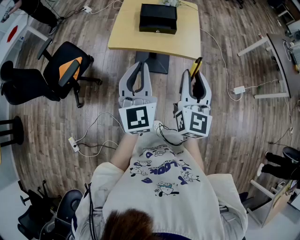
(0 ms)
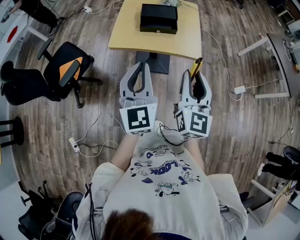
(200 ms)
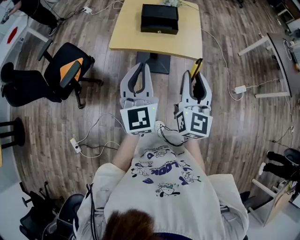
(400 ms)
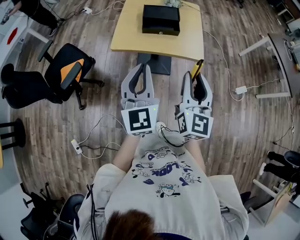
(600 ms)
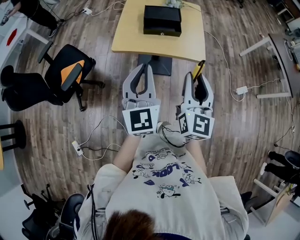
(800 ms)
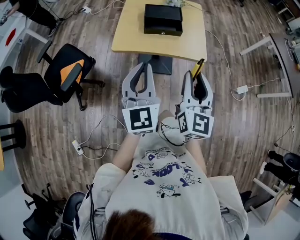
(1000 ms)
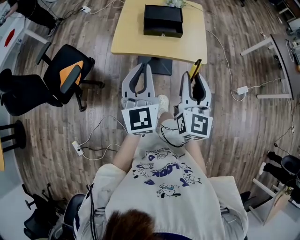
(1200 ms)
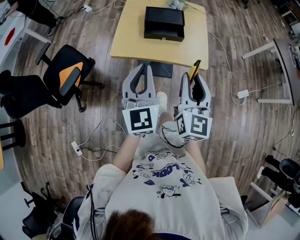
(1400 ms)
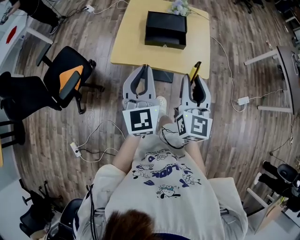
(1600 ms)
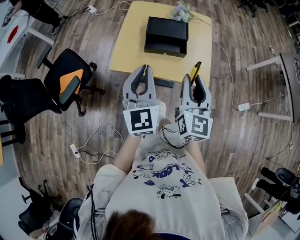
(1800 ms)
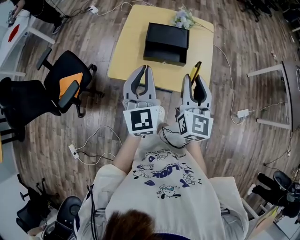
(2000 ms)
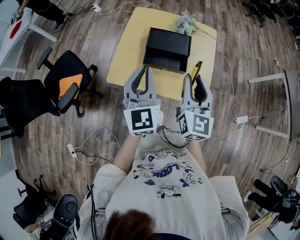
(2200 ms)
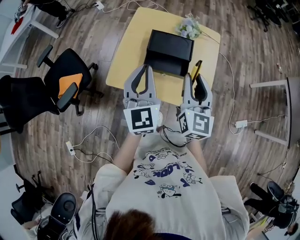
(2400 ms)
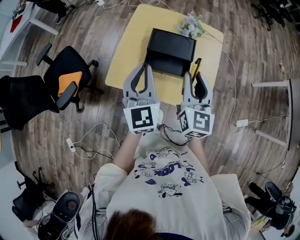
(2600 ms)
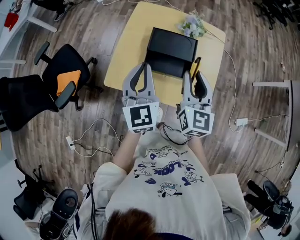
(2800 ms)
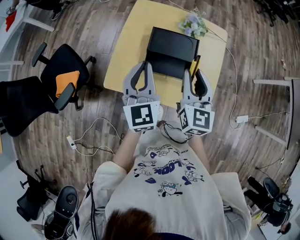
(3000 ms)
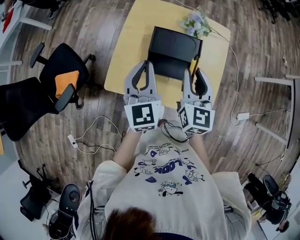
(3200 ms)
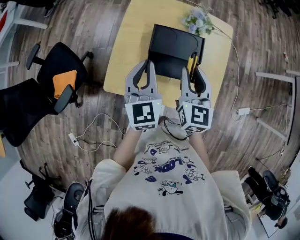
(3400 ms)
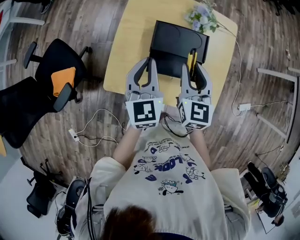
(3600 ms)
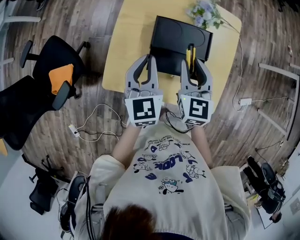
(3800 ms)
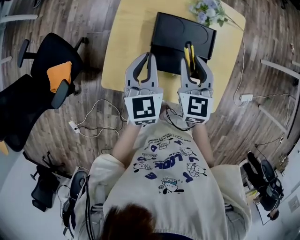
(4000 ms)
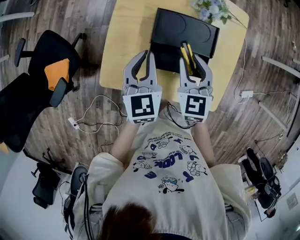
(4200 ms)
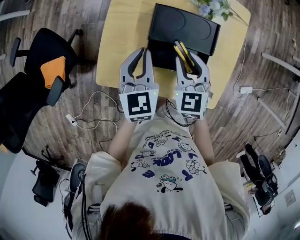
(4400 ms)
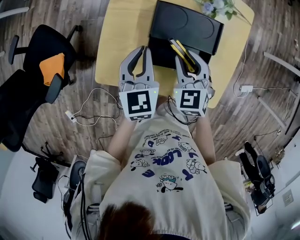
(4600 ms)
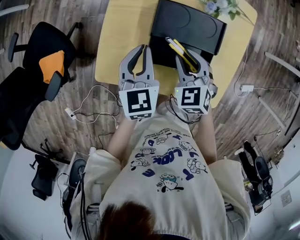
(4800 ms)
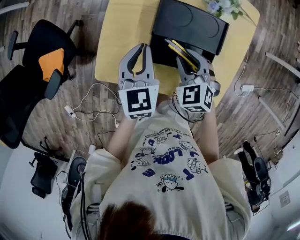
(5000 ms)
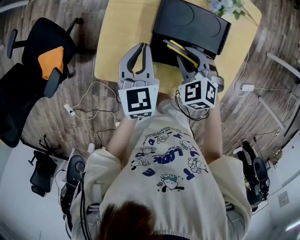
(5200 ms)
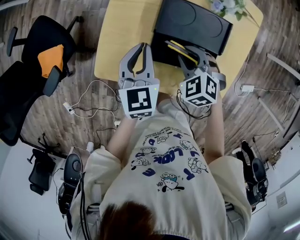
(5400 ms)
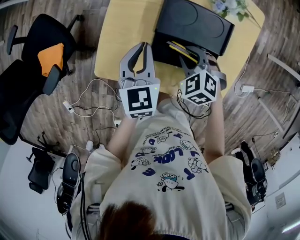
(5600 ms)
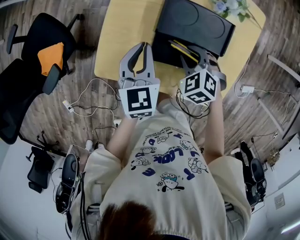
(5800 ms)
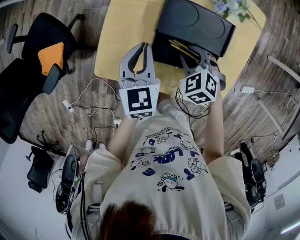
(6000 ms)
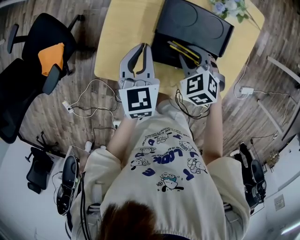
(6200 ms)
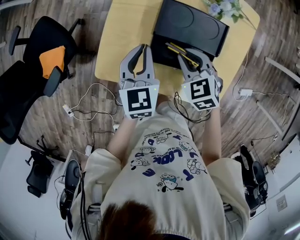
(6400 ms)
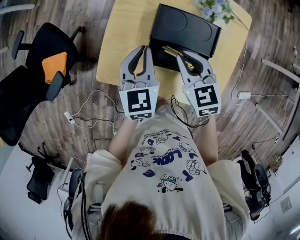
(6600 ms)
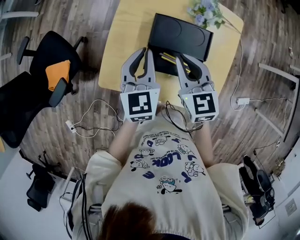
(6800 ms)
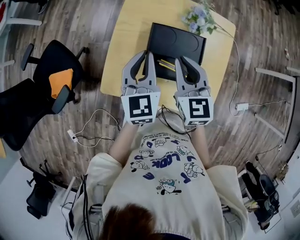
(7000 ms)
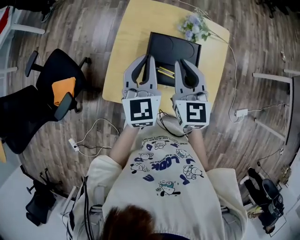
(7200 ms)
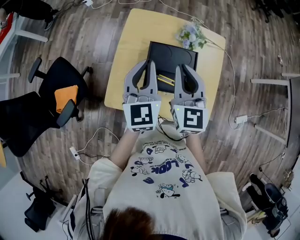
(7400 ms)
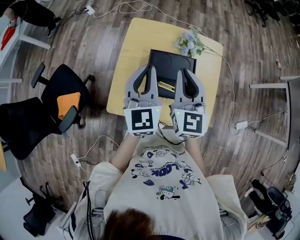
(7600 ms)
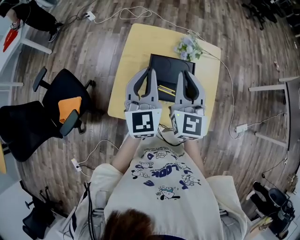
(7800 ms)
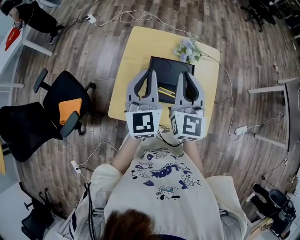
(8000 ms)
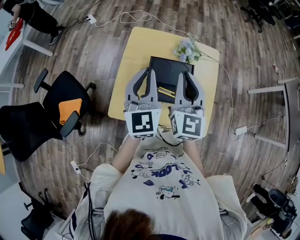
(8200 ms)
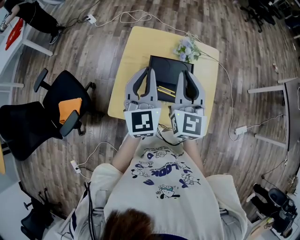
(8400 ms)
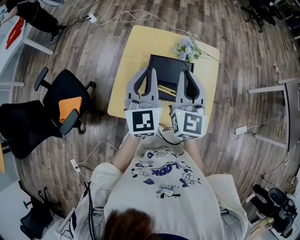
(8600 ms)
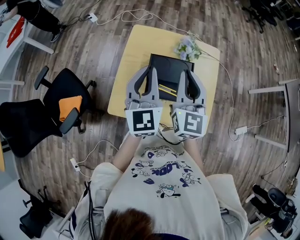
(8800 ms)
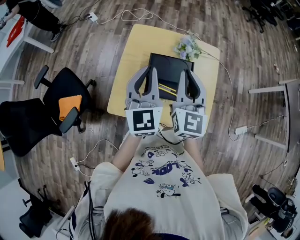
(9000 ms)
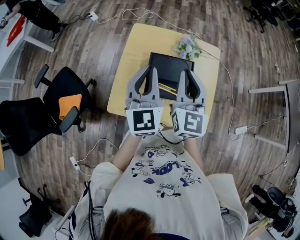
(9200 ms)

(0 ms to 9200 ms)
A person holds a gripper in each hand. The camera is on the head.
0 ms - 1600 ms: Both grippers travel together forward, approximately 15 cm.
1600 ms - 3000 ms: The two grippers go about 25 cm forward.
3000 ms - 4600 ms: Both grippers travel together downward and forward, some 15 cm. The right gripper tilts its fingers some 30 degrees downward; the left gripper changes its angle by some 20 degrees.
4600 ms - 6200 ms: The right gripper is displaced downward by approximately 5 cm, and changes its angle by approximately 30 degrees.
6200 ms - 7600 ms: Both grippers travel together upward, approximately 25 cm. The left gripper changes its angle by approximately 30 degrees. The right gripper tips its fingers upward by about 50 degrees, and closes its fingers.
7600 ms - 9200 ms: The grippers make only small movements.

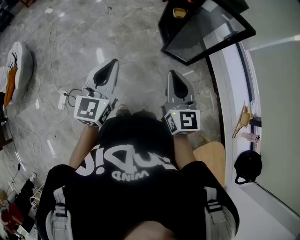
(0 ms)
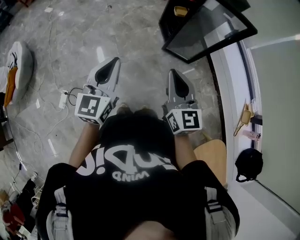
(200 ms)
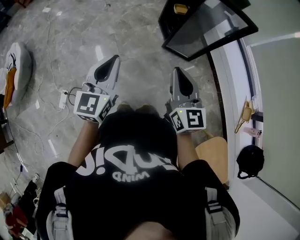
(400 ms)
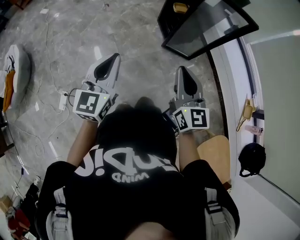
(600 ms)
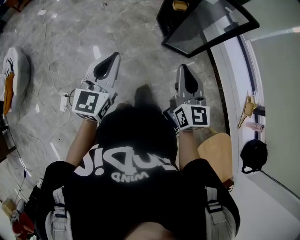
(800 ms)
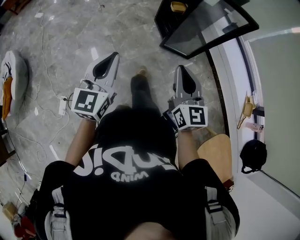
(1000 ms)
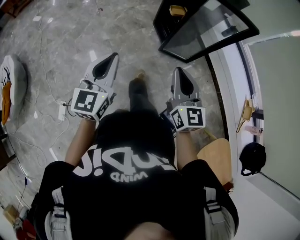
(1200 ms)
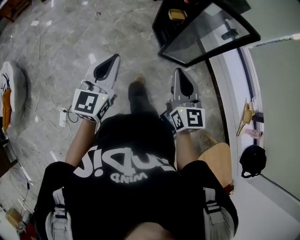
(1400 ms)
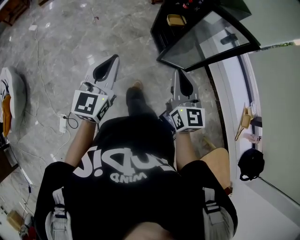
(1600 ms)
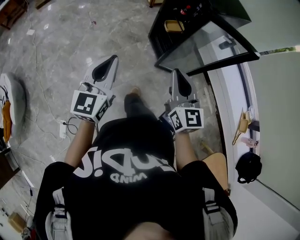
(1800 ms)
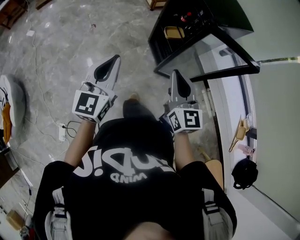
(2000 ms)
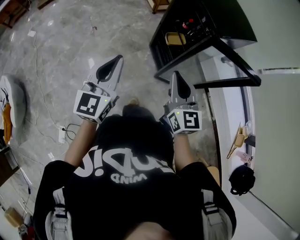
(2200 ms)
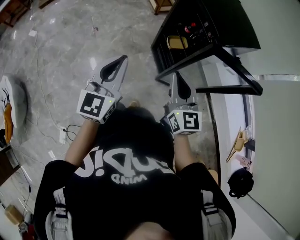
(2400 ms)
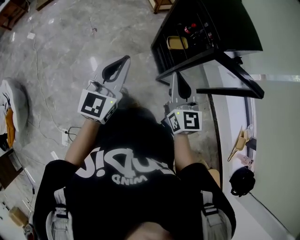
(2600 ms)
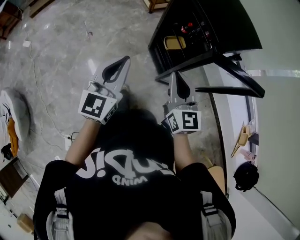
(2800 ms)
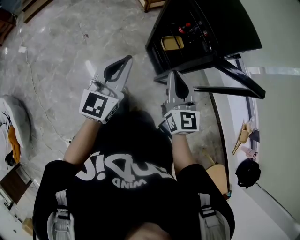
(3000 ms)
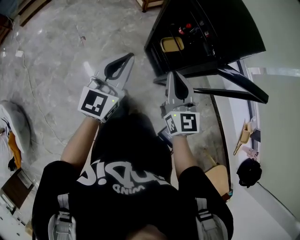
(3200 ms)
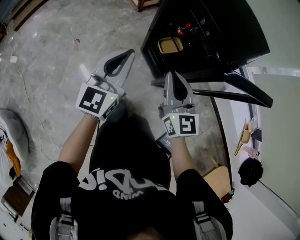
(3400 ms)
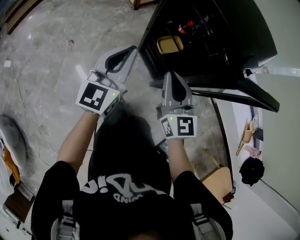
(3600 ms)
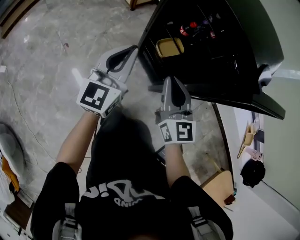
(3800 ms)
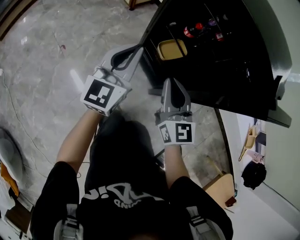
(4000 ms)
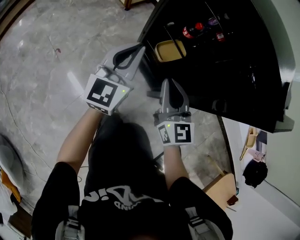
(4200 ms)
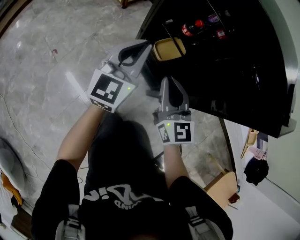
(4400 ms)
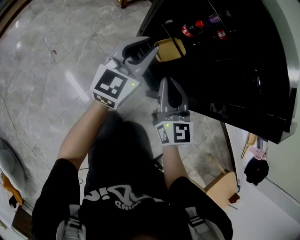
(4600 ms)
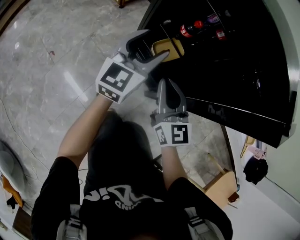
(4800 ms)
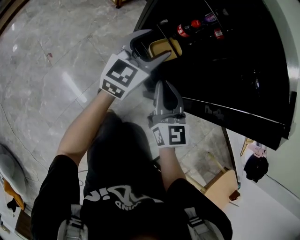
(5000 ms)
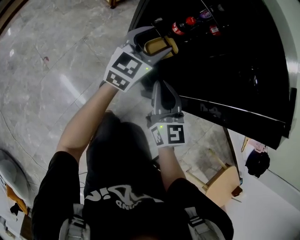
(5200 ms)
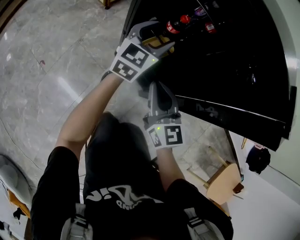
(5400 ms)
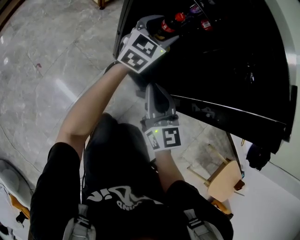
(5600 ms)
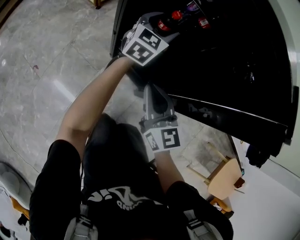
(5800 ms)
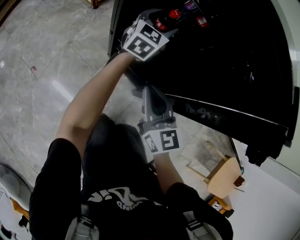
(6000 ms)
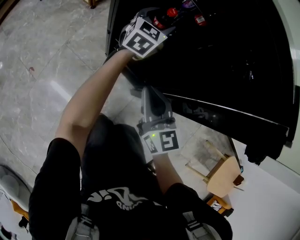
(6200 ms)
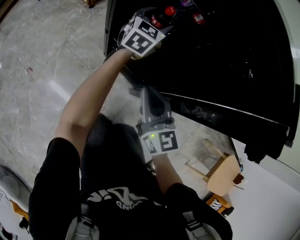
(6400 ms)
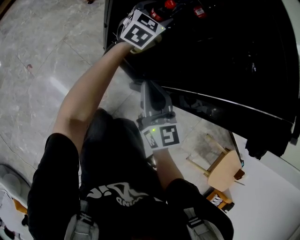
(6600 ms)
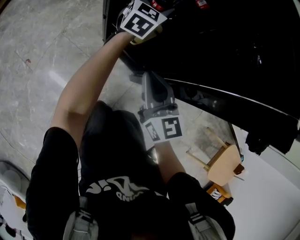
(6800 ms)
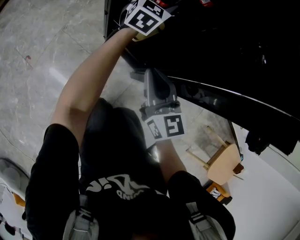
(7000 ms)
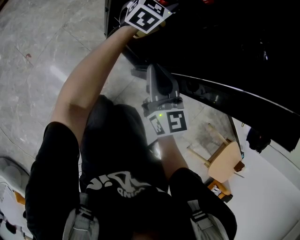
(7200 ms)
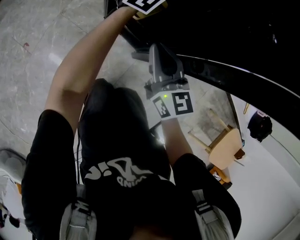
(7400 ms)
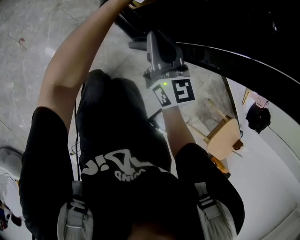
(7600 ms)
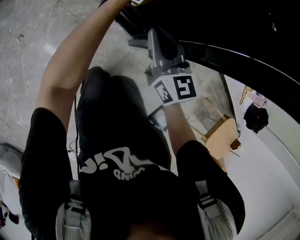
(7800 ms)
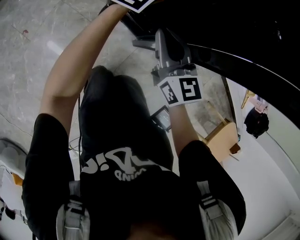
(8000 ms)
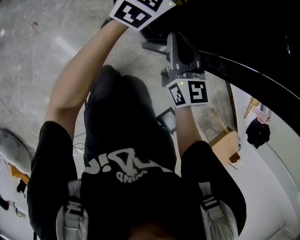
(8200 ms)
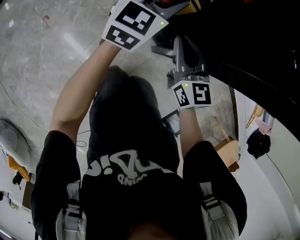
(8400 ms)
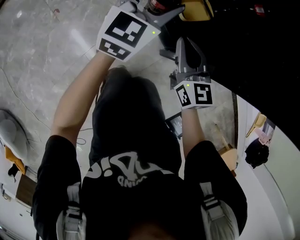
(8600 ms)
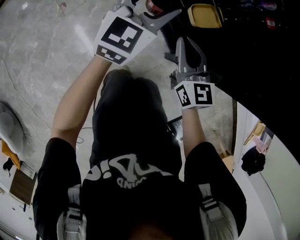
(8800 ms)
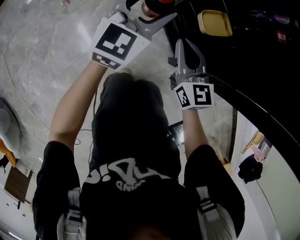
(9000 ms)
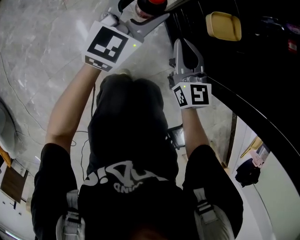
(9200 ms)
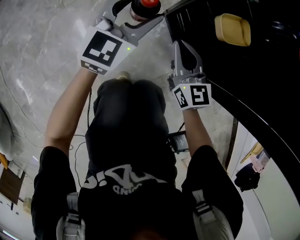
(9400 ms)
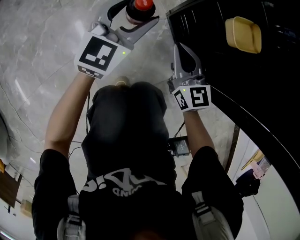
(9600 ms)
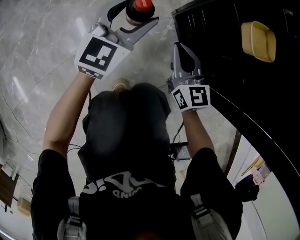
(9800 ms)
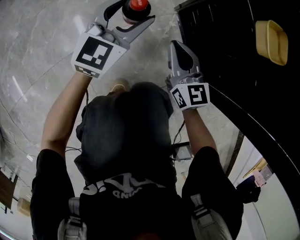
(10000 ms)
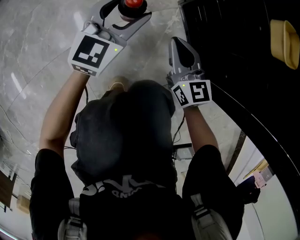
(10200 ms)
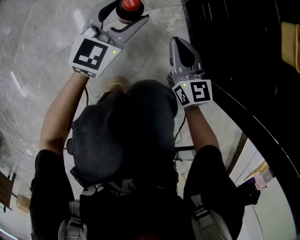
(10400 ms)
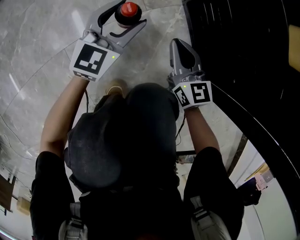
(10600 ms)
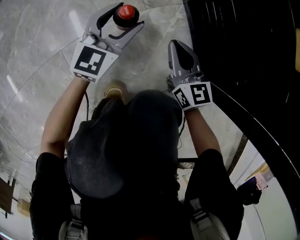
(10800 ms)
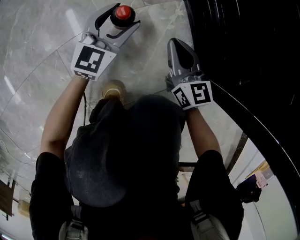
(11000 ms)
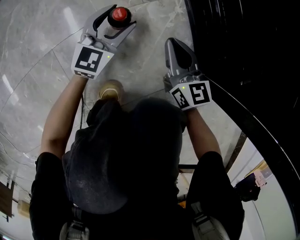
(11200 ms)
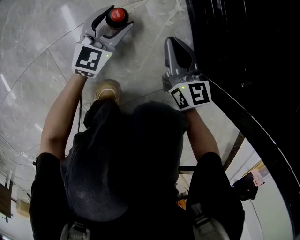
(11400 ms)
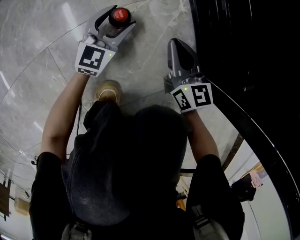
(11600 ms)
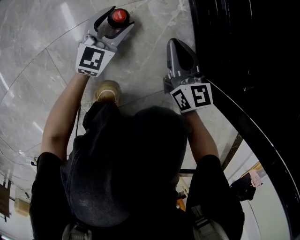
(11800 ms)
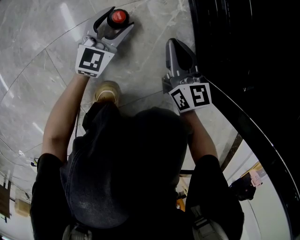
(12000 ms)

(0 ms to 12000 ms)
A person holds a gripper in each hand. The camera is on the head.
0 ms - 1600 ms: The grippers both shift forward by approximately 20 cm.
1600 ms - 3000 ms: The grippers both shift forward by about 35 cm.
3000 ms - 4400 ms: The two grippers go about 35 cm downward and forward.
4400 ms - 6000 ms: The left gripper travels forward, to the right and downward by approximately 25 cm, and opens up, while the right gripper moves downward, approximately 5 cm.
6000 ms - 7600 ms: The grippers move only a little.
7600 ms - 9000 ms: The left gripper travels to the left and backward by roughly 25 cm. Meanwhile the right gripper is displaced to the left and downward by approximately 15 cm.
9000 ms - 10400 ms: The two grippers go roughly 40 cm downward.
10400 ms - 12000 ms: The right gripper heads downward, covering about 10 cm; the left gripper travels downward by some 20 cm.

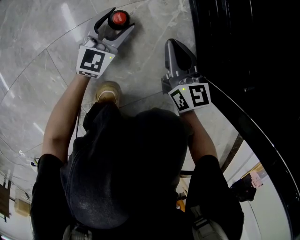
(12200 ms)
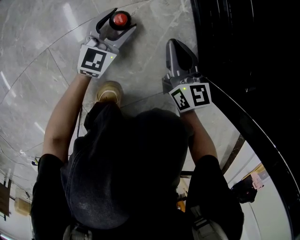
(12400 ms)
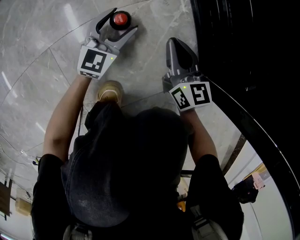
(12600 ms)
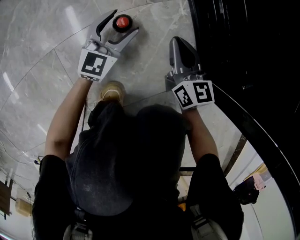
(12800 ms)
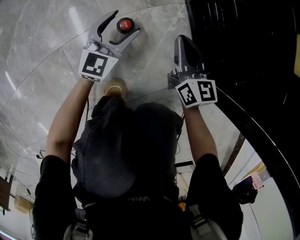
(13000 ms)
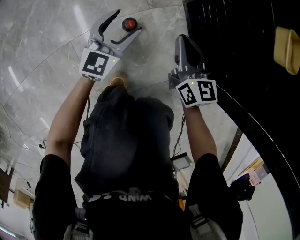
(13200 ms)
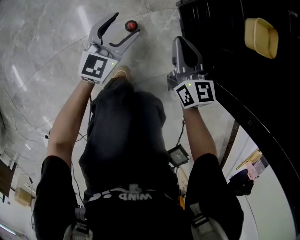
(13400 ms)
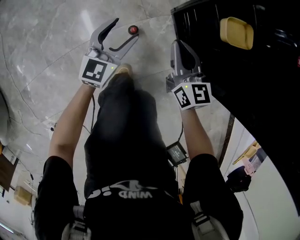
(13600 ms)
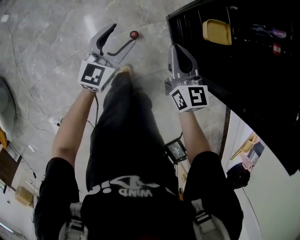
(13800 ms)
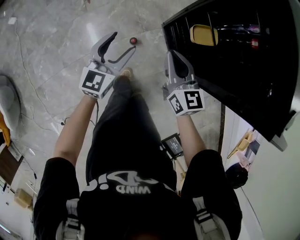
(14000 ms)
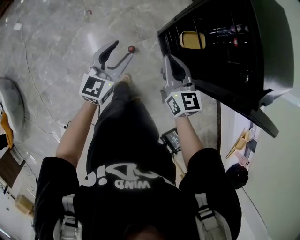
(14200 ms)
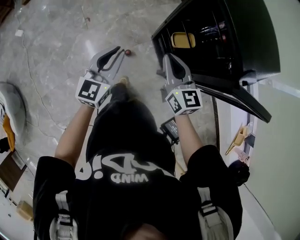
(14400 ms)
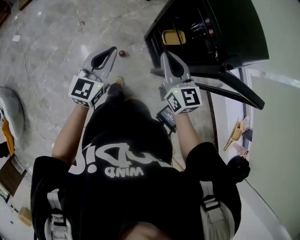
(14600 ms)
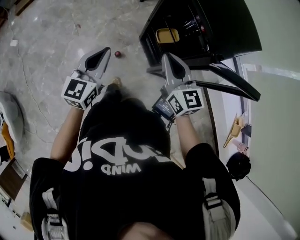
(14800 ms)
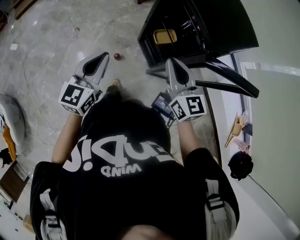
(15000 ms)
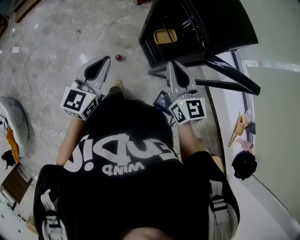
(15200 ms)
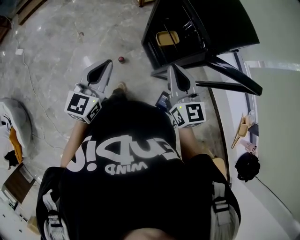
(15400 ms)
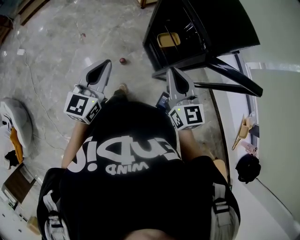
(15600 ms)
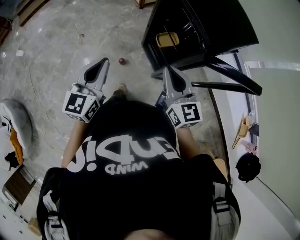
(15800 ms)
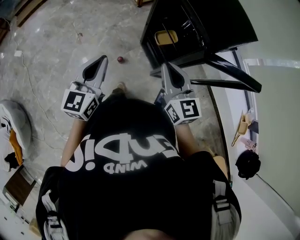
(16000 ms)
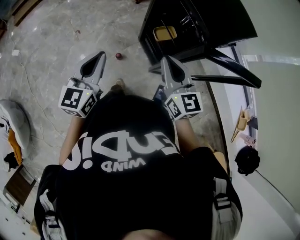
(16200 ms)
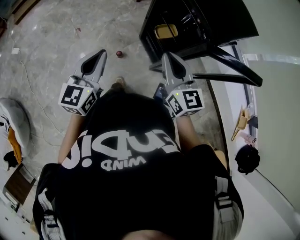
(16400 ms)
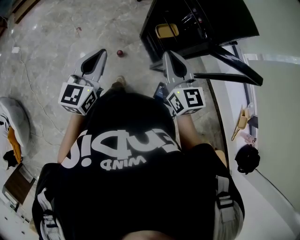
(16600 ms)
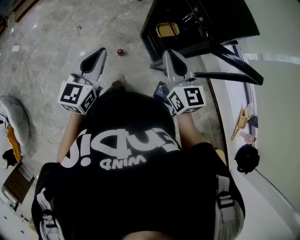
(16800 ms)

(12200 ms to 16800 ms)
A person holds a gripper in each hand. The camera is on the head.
12200 ms - 13800 ms: Both grippers travel together upward, about 60 cm.
13800 ms - 15200 ms: Both grippers travel together upward, approximately 40 cm. The left gripper closes.
15200 ms - 16800 ms: The grippers move only a little.
